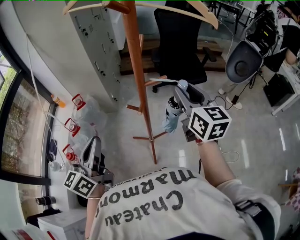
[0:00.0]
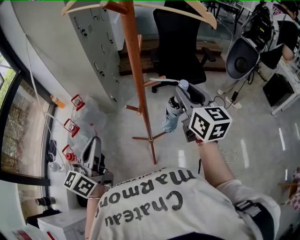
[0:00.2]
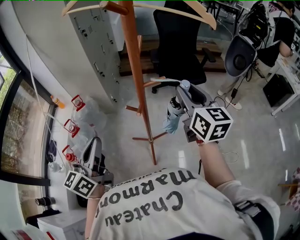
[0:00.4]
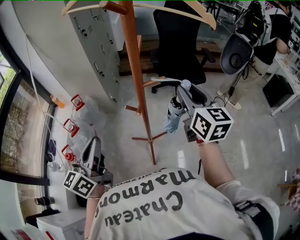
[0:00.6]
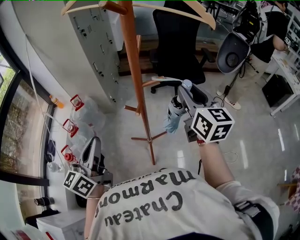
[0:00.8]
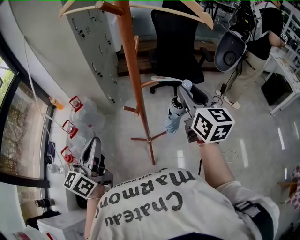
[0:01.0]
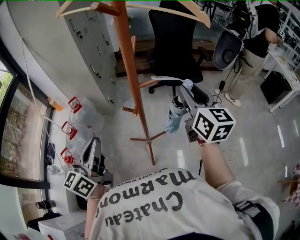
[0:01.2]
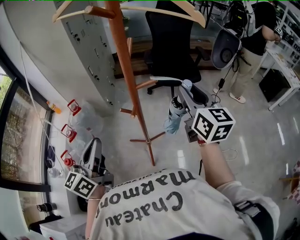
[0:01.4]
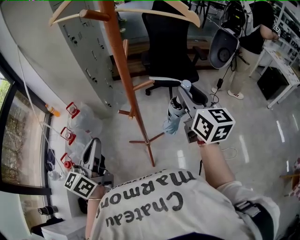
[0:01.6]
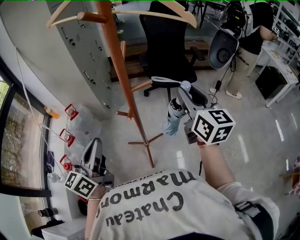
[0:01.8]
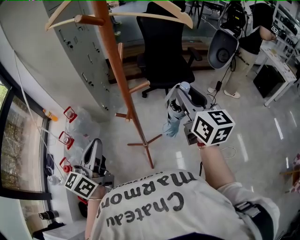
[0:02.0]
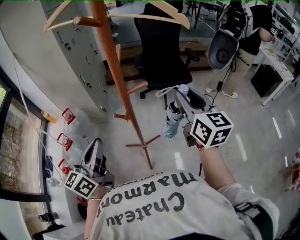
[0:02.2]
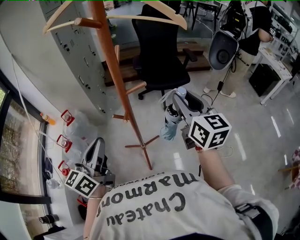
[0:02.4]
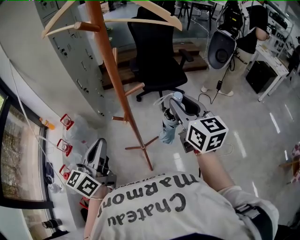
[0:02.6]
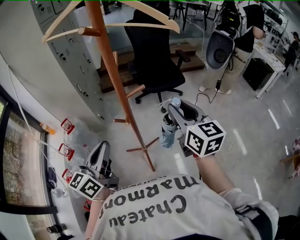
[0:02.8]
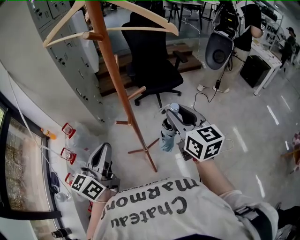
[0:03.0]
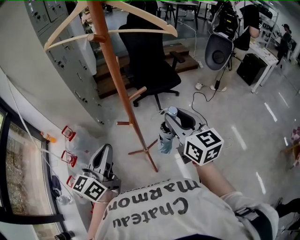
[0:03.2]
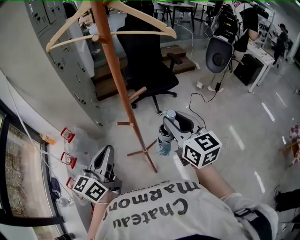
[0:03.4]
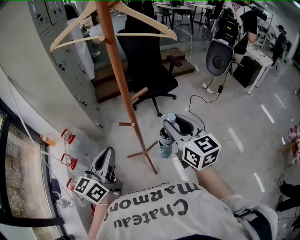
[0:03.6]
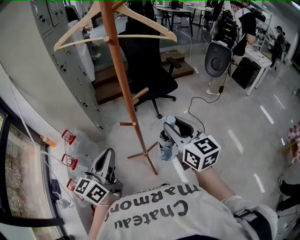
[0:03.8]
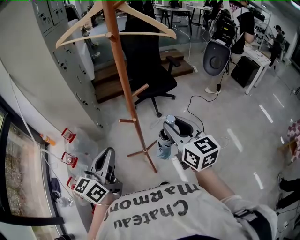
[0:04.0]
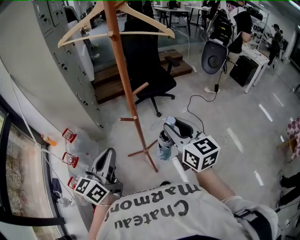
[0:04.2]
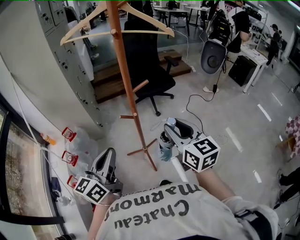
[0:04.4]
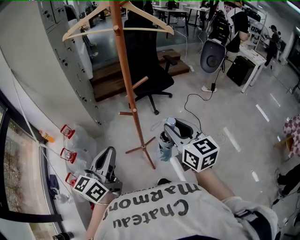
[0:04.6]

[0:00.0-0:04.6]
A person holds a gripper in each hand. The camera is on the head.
0.0 to 1.6 s: The grippers move only a little.
1.6 to 3.0 s: The right gripper shifts approximately 10 cm backward.
3.0 to 4.6 s: Both grippers travel together backward, about 10 cm.

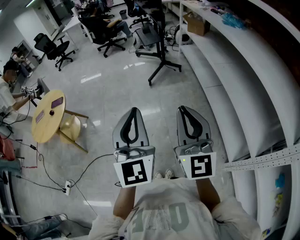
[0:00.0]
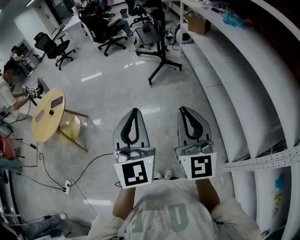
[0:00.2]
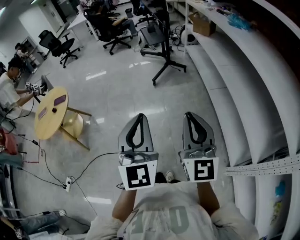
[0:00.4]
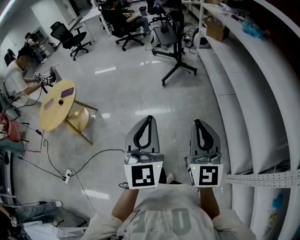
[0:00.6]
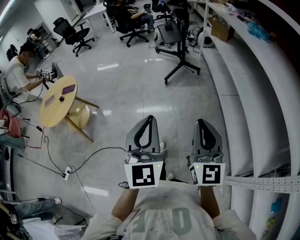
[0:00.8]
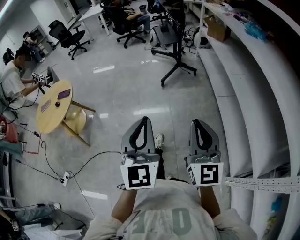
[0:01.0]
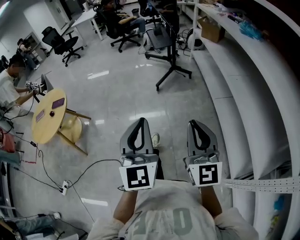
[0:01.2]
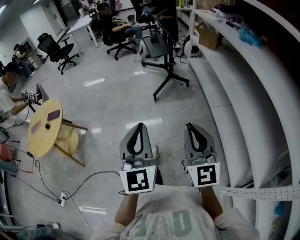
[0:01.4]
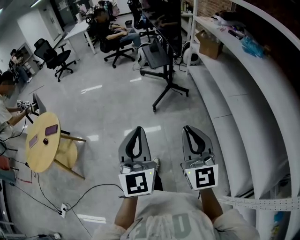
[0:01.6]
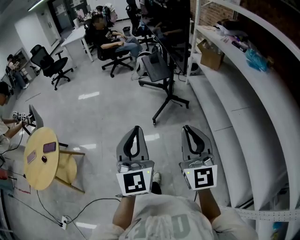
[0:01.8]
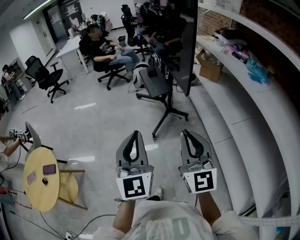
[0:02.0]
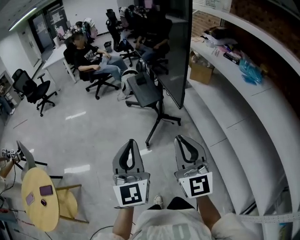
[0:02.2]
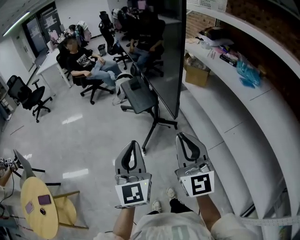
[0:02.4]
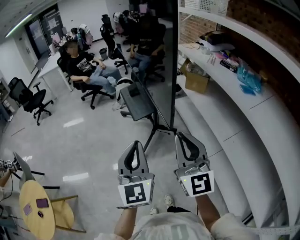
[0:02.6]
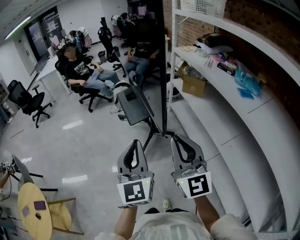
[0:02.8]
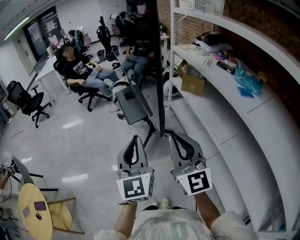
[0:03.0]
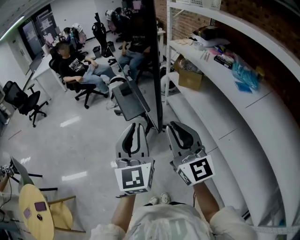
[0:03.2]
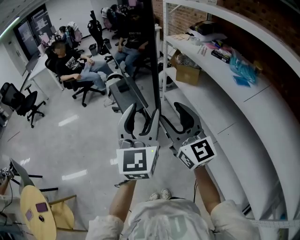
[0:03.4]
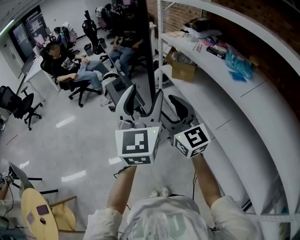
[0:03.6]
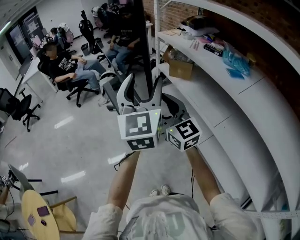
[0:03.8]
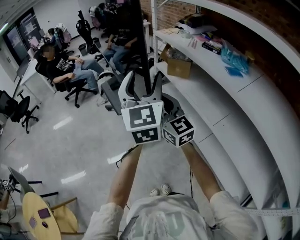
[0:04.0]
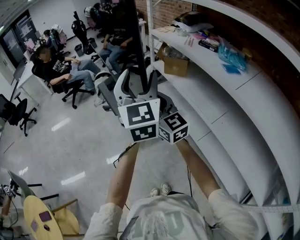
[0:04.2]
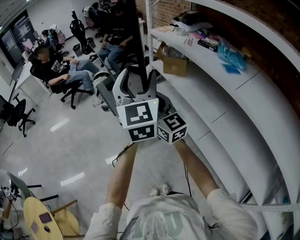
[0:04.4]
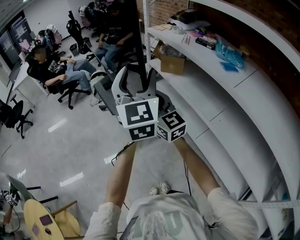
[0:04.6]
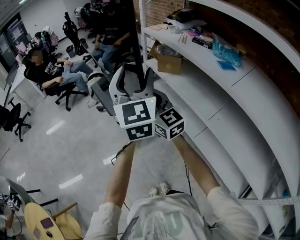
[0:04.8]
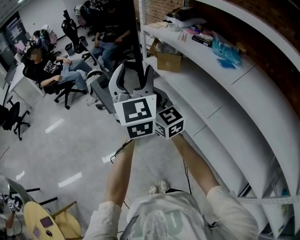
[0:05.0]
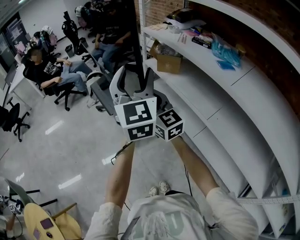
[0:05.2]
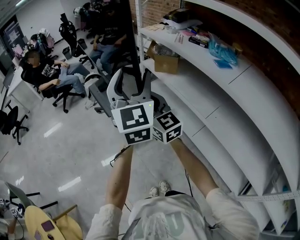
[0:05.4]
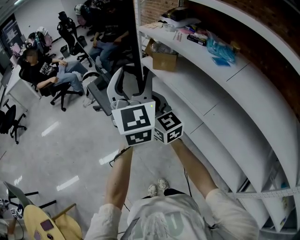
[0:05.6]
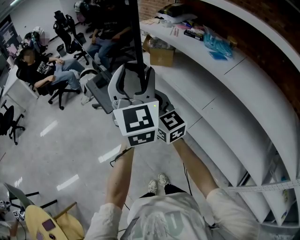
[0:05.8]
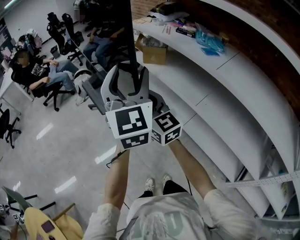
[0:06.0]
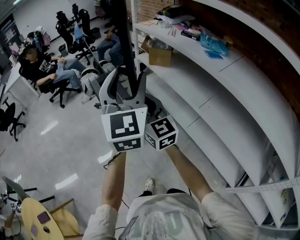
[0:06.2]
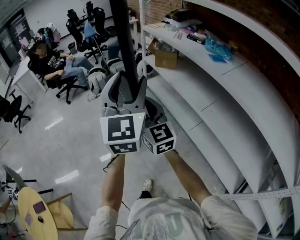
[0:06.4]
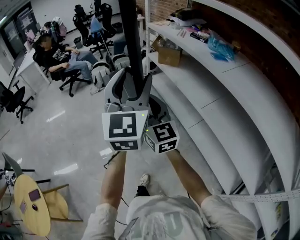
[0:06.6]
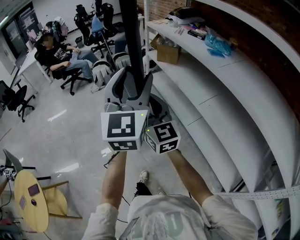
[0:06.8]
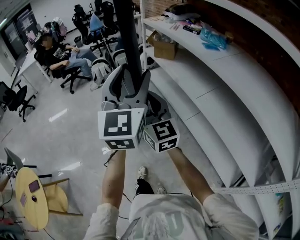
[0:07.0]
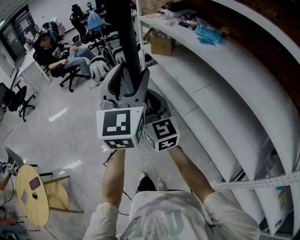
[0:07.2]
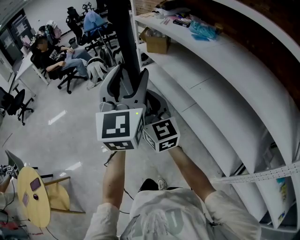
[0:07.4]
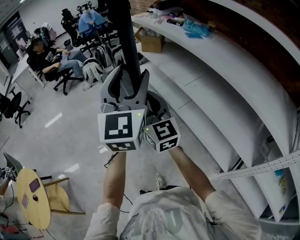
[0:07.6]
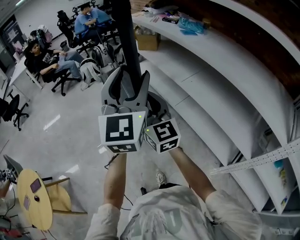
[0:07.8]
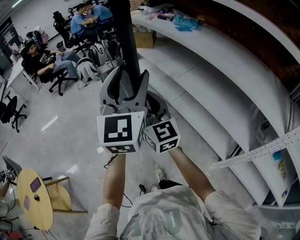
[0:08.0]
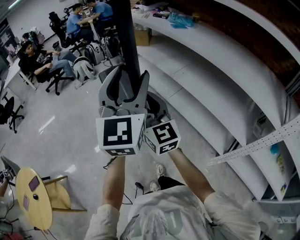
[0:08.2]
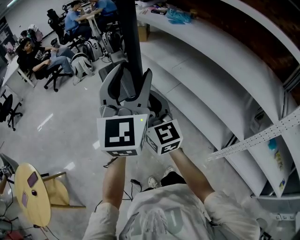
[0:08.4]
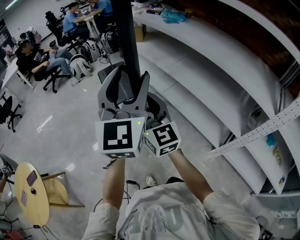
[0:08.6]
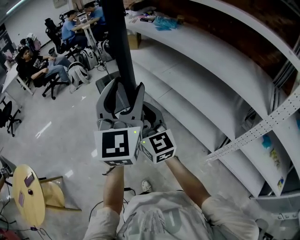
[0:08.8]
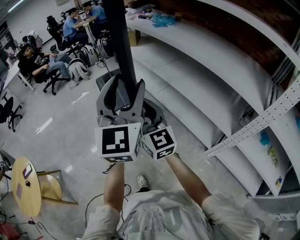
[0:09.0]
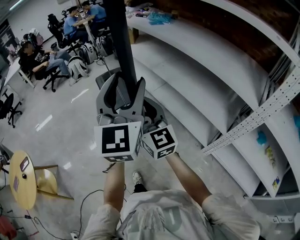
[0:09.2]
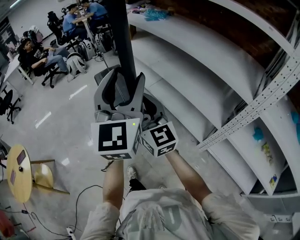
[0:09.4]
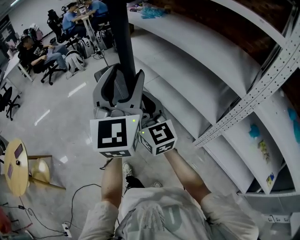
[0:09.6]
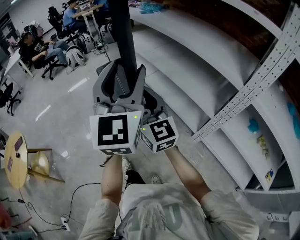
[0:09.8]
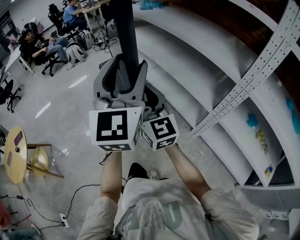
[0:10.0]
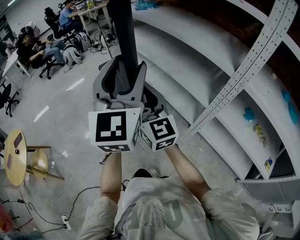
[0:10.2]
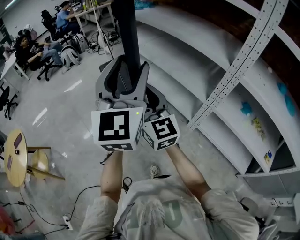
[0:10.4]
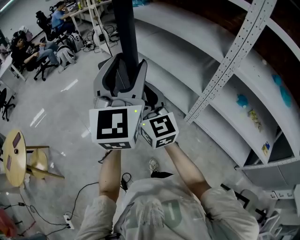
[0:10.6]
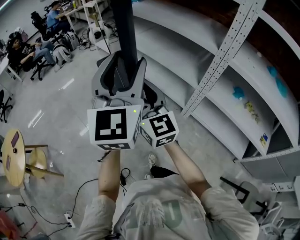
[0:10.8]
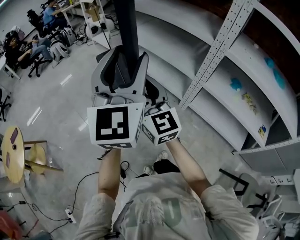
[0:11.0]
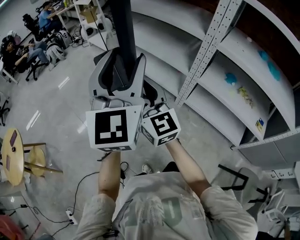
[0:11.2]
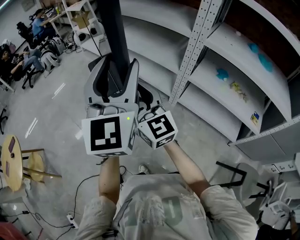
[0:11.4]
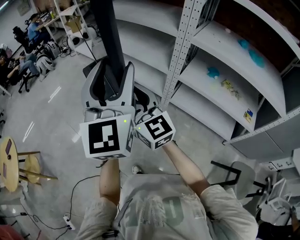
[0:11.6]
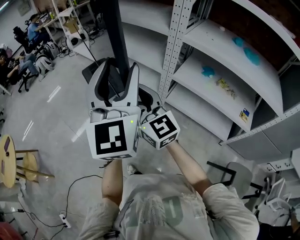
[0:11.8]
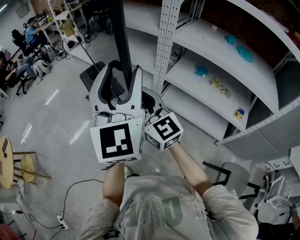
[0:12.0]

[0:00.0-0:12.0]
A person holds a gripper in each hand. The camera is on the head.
0.0 to 1.6 s: The two grippers go approximately 25 cm forward.
1.6 to 3.0 s: Both grippers are carried forward, some 40 cm.
3.0 to 4.4 s: The left gripper goes about 20 cm forward, to the right and upward, and opens up. The right gripper heads forward, covering about 15 cm, and opens its fingers.
4.4 to 6.0 s: Both grippers travel together backward, approximately 5 cm.
6.0 to 7.6 s: The grippers both shift backward by roughly 30 cm.
7.6 to 9.0 s: The grippers both shift backward by approximately 25 cm.
9.0 to 10.4 s: Both grippers move backward and to the right, roughly 30 cm.
10.4 to 12.0 s: The two grippers go some 35 cm backward and to the right.

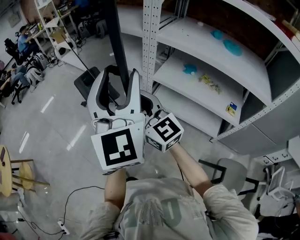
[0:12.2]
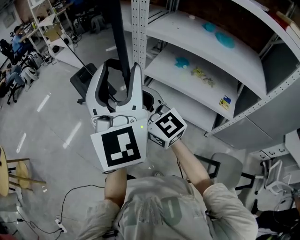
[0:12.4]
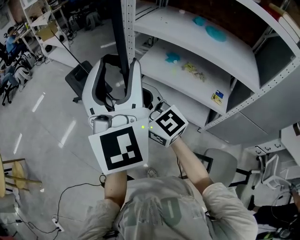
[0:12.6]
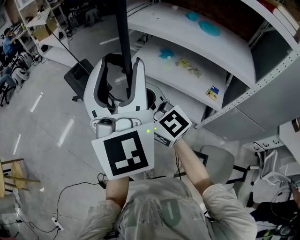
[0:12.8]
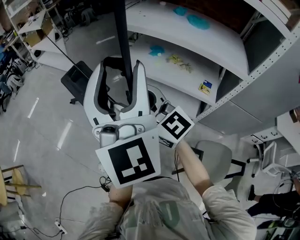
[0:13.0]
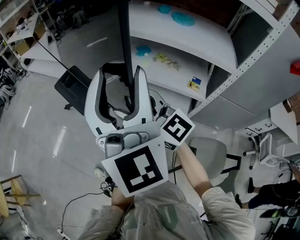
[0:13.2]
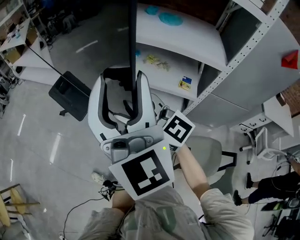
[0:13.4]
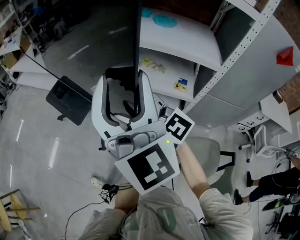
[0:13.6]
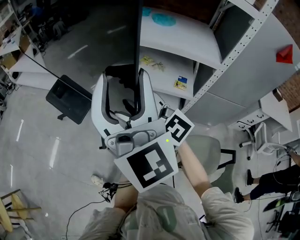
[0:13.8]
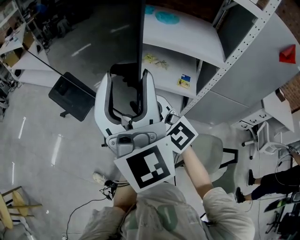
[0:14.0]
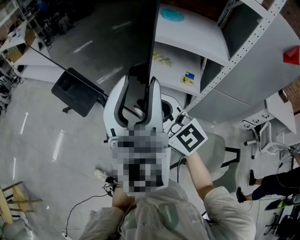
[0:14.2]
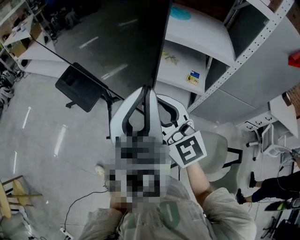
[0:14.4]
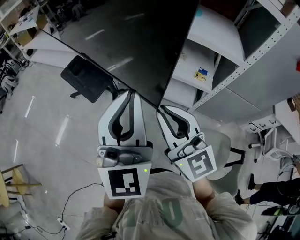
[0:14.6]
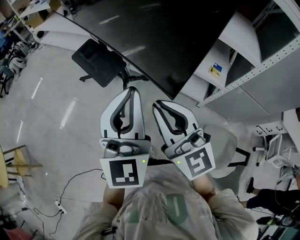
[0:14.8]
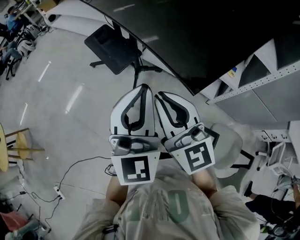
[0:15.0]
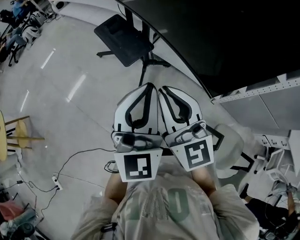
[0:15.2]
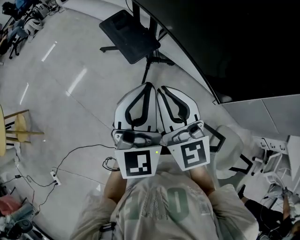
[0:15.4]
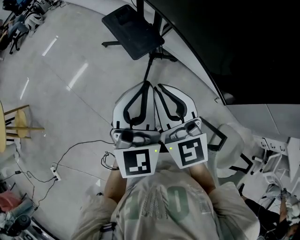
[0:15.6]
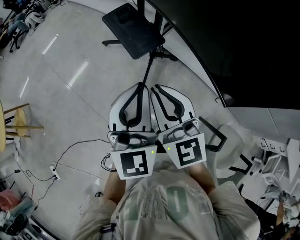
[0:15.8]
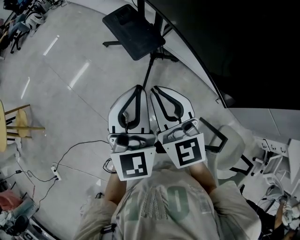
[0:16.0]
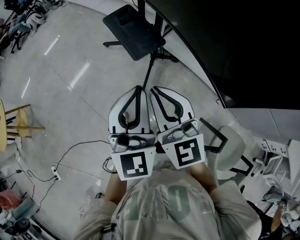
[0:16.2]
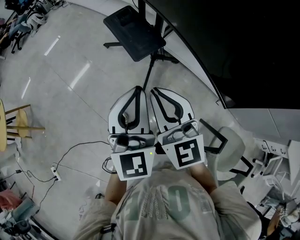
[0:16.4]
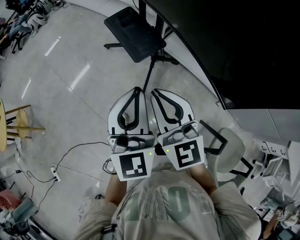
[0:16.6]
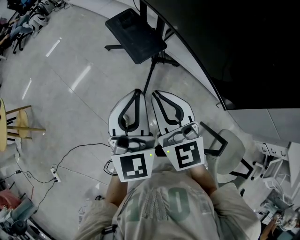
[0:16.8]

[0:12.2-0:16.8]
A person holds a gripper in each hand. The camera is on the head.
12.2 to 13.8 s: The grippers both shift to the right and backward by roughly 30 cm.
13.8 to 15.2 s: The left gripper heads to the left and downward, covering some 25 cm, and closes up. Meanwhile the right gripper goes about 15 cm to the left, and closes.
15.2 to 16.8 s: The grippers both shift to the left by about 5 cm.

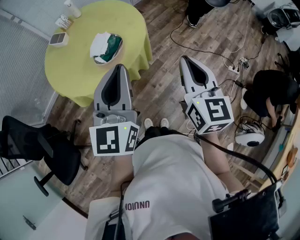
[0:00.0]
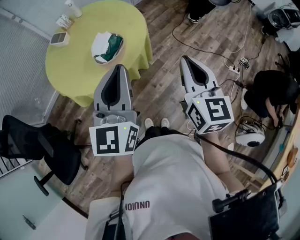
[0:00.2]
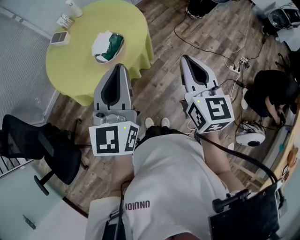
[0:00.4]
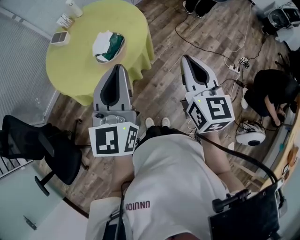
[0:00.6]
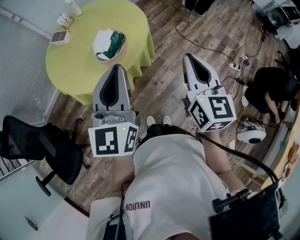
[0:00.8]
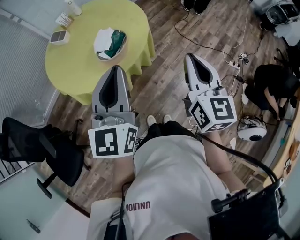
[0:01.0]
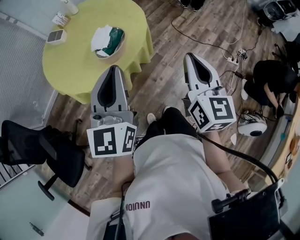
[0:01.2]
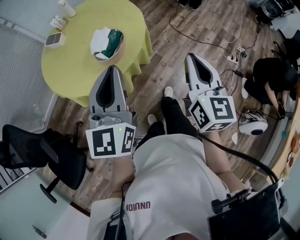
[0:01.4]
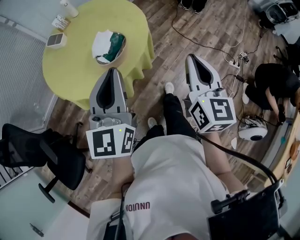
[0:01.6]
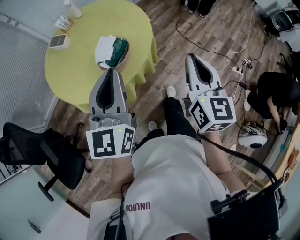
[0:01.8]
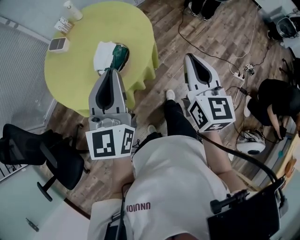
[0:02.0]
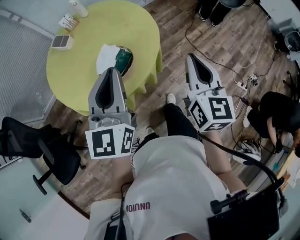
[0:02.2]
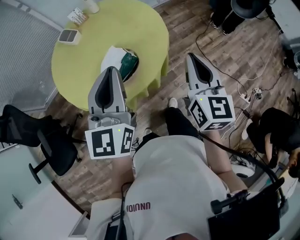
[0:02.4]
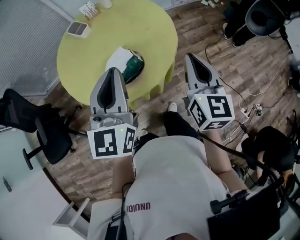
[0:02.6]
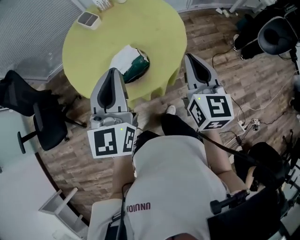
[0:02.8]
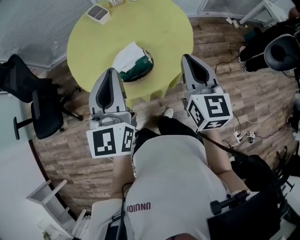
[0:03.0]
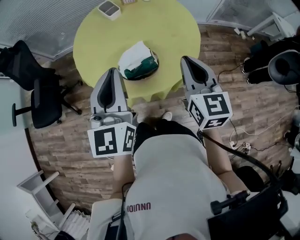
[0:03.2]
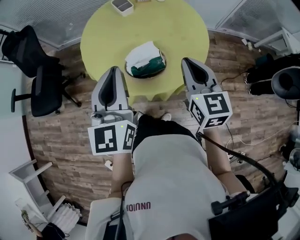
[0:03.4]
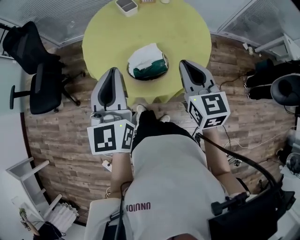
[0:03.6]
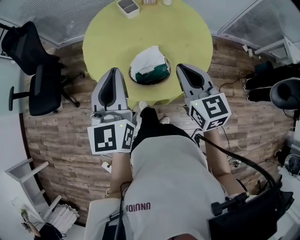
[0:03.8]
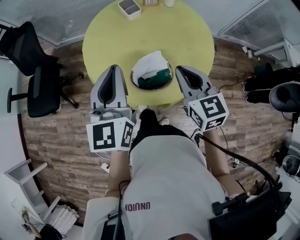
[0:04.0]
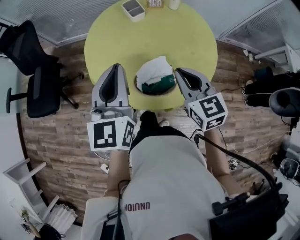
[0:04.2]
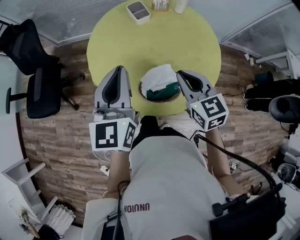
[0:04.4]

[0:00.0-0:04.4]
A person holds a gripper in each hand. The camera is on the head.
0.0 to 1.4 s: The left gripper shifts by about 5 cm.
1.4 to 3.0 s: The left gripper moves some 15 cm, and turns by roughly 40 degrees. The right gripper changes place by some 30 cm, and turns by some 40 degrees.
3.0 to 4.4 s: The right gripper heads forward, to the left and downward, covering about 20 cm, and changes its angle by approximately 40 degrees; the left gripper goes approximately 15 cm forward and to the left.
